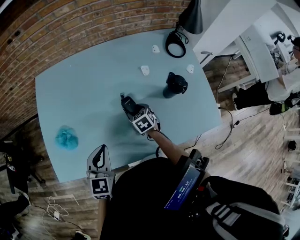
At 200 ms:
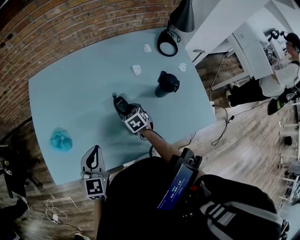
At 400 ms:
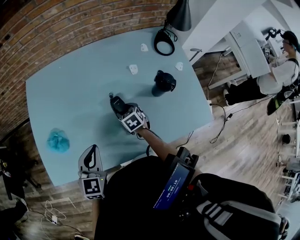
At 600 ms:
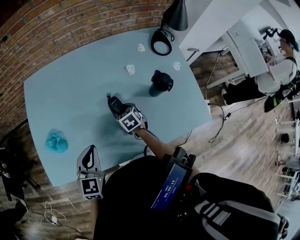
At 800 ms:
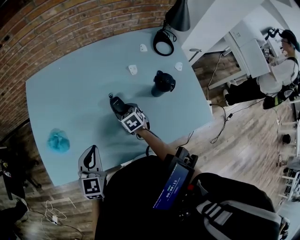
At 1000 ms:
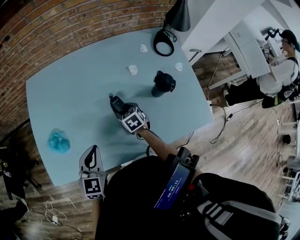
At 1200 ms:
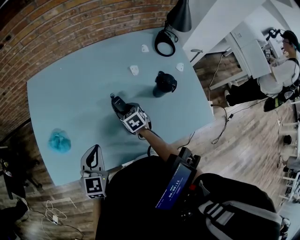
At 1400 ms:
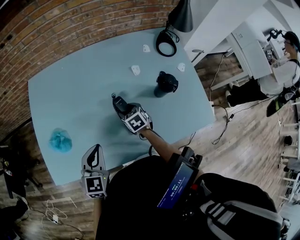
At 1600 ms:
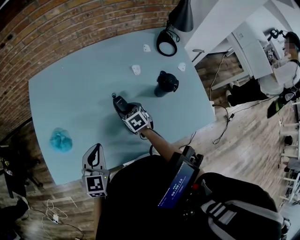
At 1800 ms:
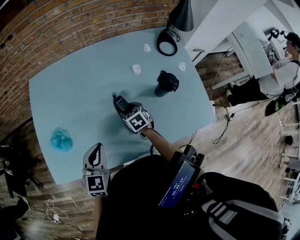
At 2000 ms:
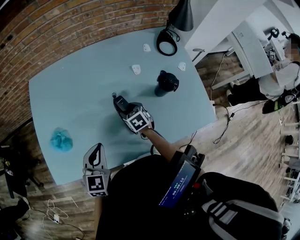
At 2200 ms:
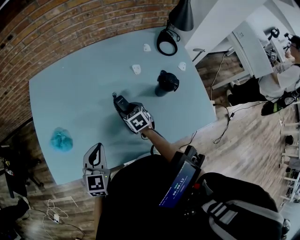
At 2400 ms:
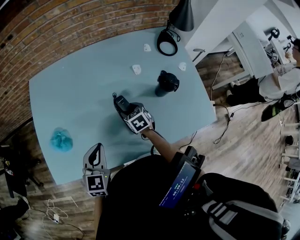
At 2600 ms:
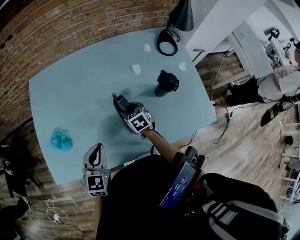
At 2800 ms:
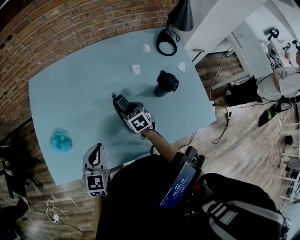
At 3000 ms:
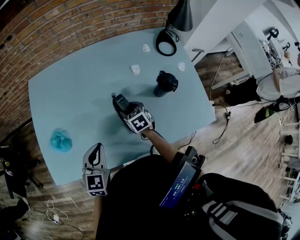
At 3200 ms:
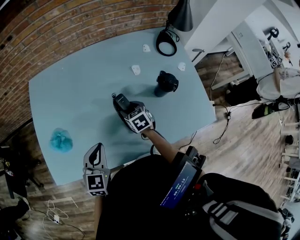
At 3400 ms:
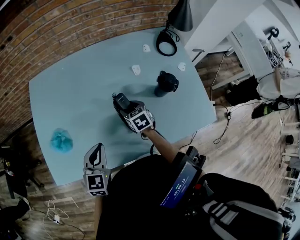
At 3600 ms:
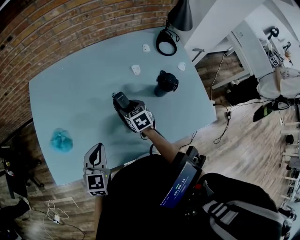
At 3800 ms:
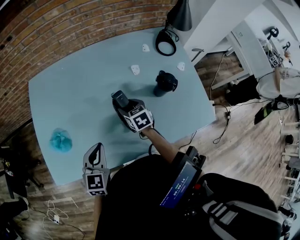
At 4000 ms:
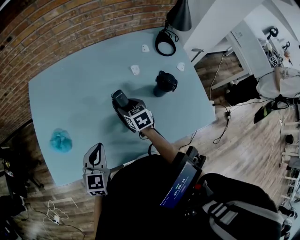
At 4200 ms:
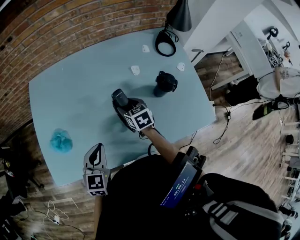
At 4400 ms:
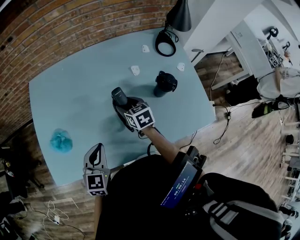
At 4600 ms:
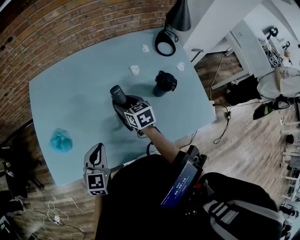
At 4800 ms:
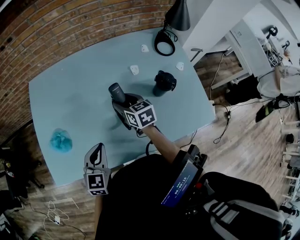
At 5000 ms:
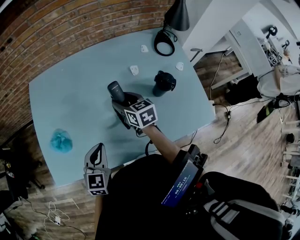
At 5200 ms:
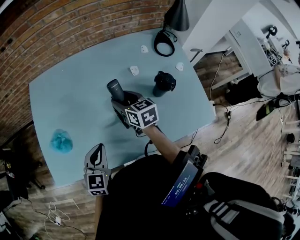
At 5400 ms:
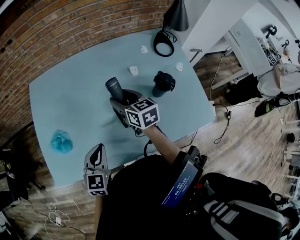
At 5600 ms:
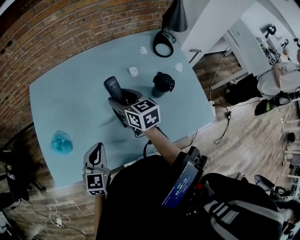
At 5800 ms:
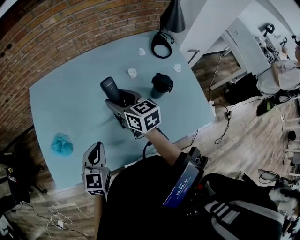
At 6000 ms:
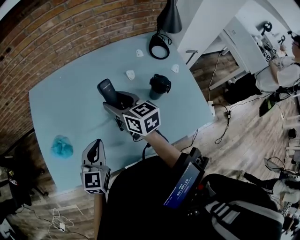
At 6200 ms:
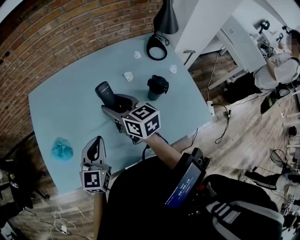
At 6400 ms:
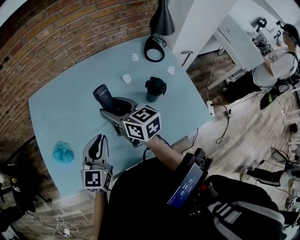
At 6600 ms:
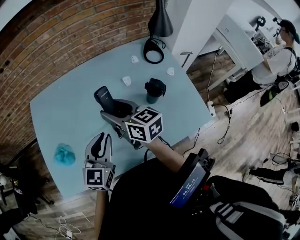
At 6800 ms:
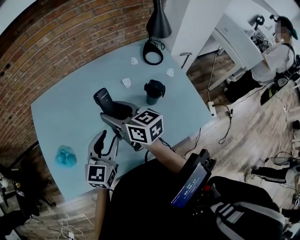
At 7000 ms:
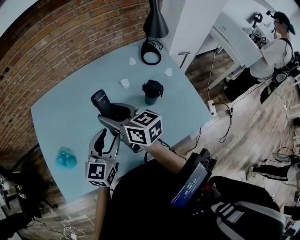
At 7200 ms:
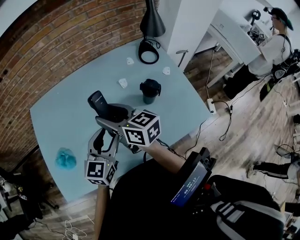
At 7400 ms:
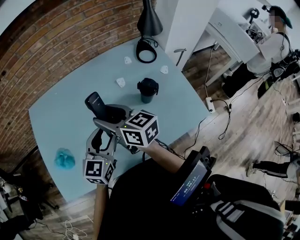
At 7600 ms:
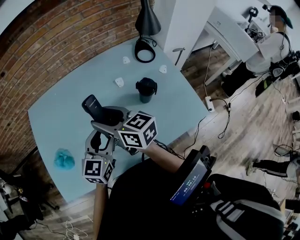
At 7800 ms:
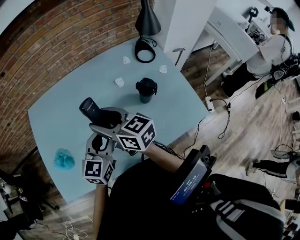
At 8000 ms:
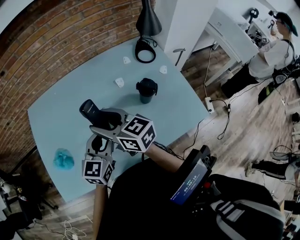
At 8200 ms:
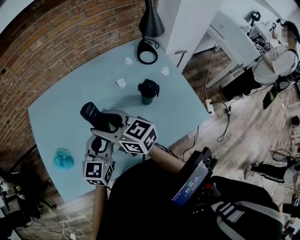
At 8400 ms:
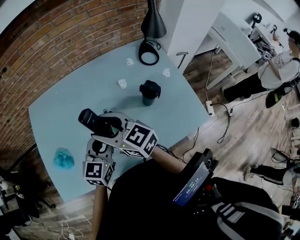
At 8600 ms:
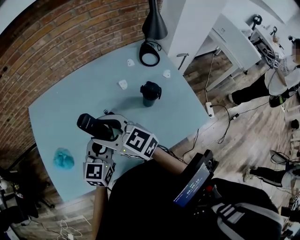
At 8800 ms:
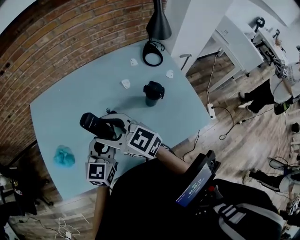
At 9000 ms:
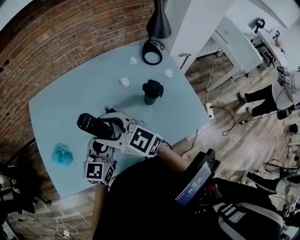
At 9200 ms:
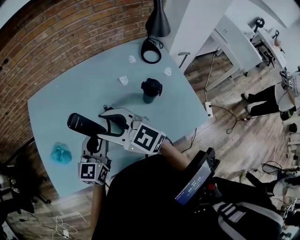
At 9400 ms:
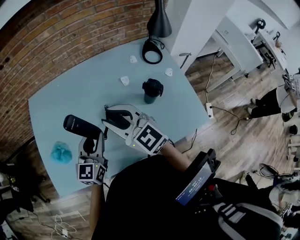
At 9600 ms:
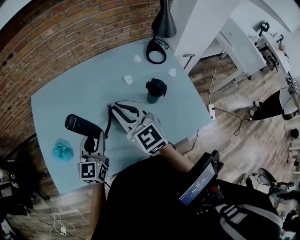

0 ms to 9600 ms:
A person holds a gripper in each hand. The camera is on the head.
0 ms to 3200 ms: The grippers stay close to where they were, moving slightly.
3200 ms to 4800 ms: The right gripper moves upward, some 10 cm.
4800 ms to 6400 ms: The left gripper is displaced upward and to the right by about 10 cm. Meanwhile the right gripper heads upward, covering roughly 15 cm, and turns by about 20 degrees.
6400 ms to 8000 ms: The right gripper changes place by roughly 5 cm. Meanwhile the left gripper moves to the right, some 5 cm, and opens up.
8000 ms to 9600 ms: The right gripper turns by some 40 degrees, and closes up. The left gripper goes approximately 10 cm to the left.

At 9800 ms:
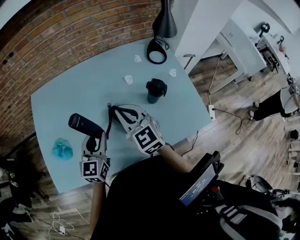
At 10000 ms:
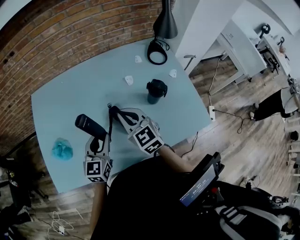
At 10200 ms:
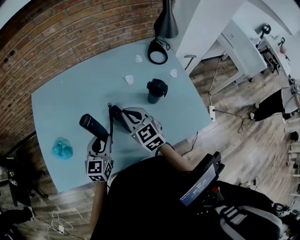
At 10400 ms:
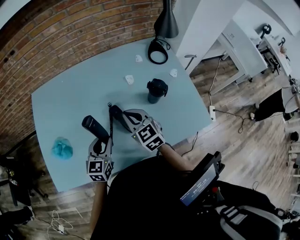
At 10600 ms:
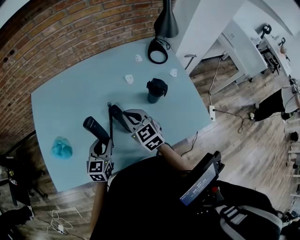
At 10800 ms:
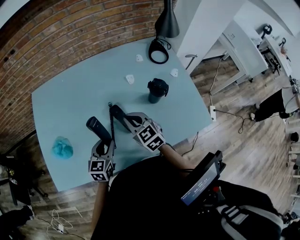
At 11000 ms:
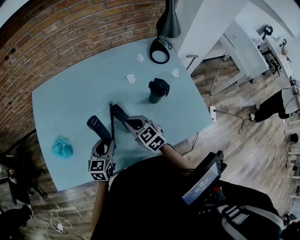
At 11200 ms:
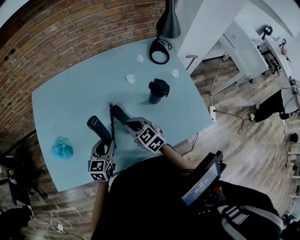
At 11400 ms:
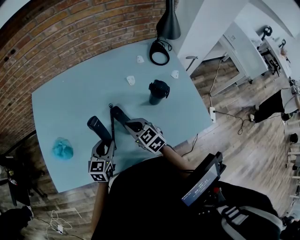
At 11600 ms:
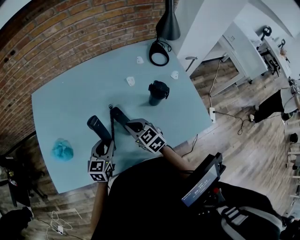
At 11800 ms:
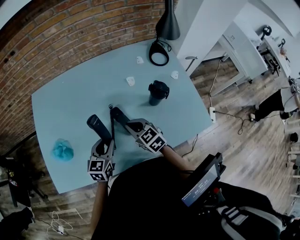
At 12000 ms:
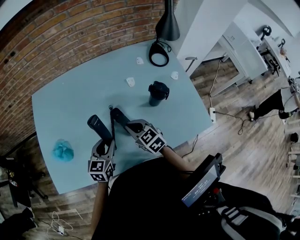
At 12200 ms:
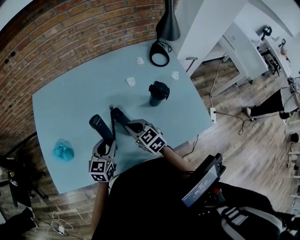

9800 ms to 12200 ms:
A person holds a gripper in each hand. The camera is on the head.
9800 ms to 11000 ms: Both grippers travel together downward, about 10 cm. The right gripper changes its angle by some 20 degrees.
11000 ms to 12200 ms: The grippers make only small movements.

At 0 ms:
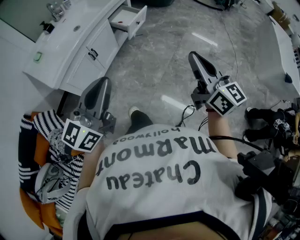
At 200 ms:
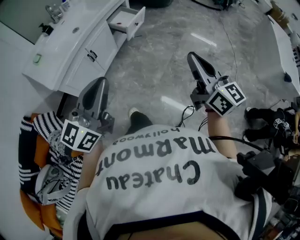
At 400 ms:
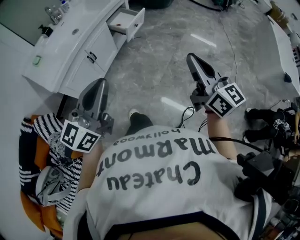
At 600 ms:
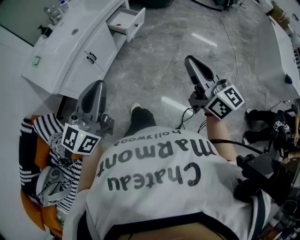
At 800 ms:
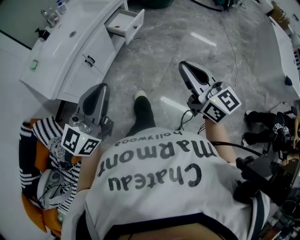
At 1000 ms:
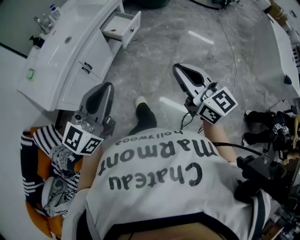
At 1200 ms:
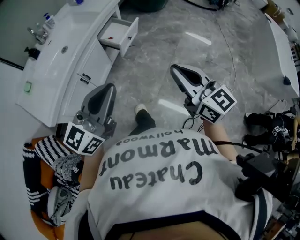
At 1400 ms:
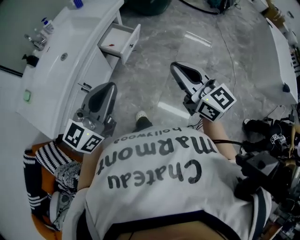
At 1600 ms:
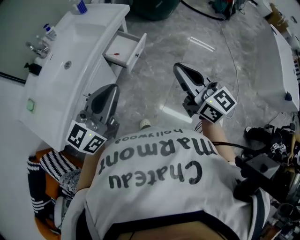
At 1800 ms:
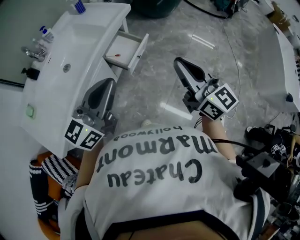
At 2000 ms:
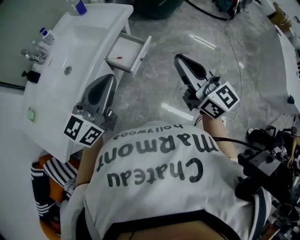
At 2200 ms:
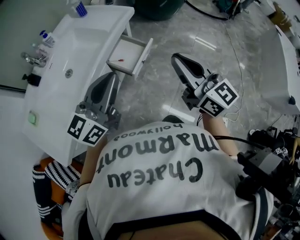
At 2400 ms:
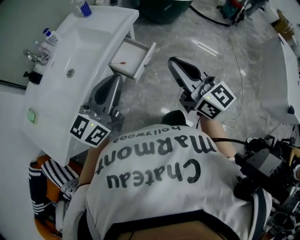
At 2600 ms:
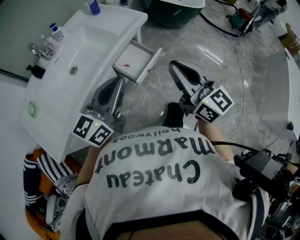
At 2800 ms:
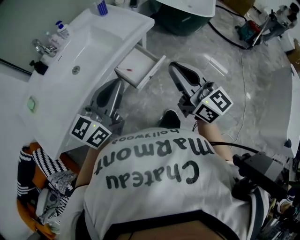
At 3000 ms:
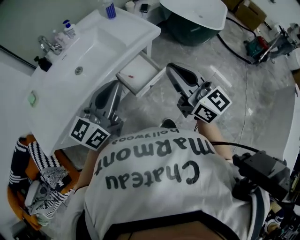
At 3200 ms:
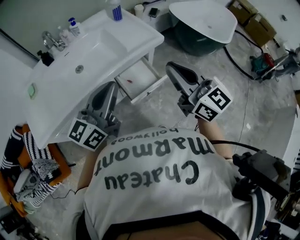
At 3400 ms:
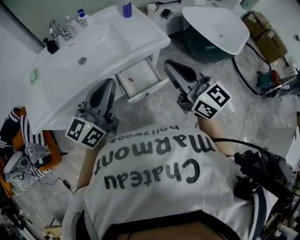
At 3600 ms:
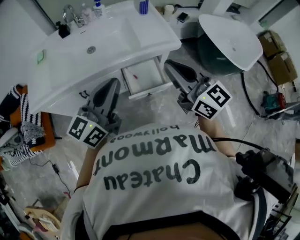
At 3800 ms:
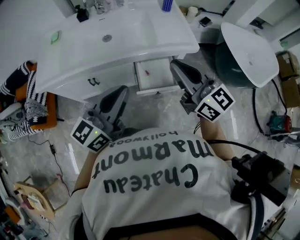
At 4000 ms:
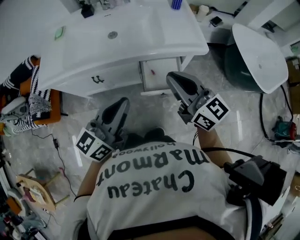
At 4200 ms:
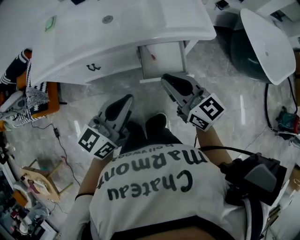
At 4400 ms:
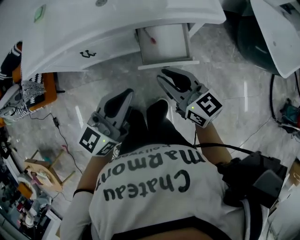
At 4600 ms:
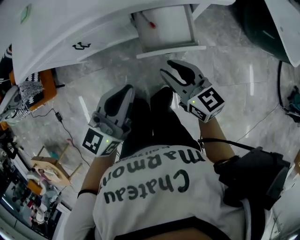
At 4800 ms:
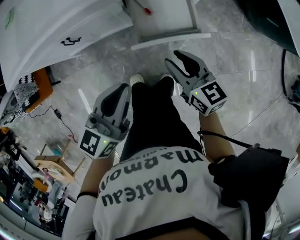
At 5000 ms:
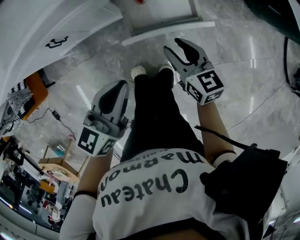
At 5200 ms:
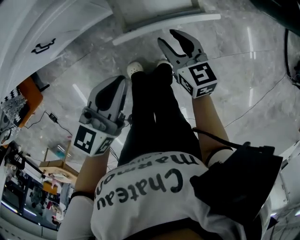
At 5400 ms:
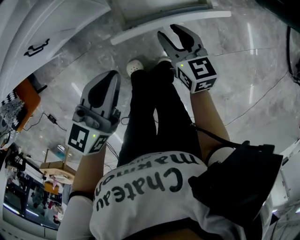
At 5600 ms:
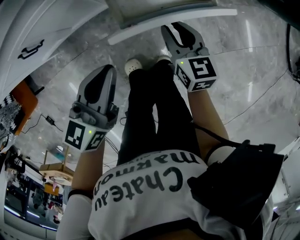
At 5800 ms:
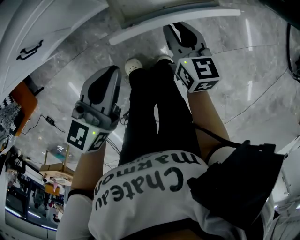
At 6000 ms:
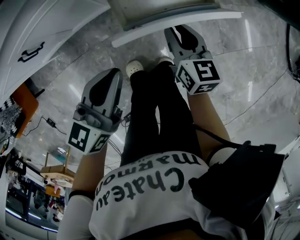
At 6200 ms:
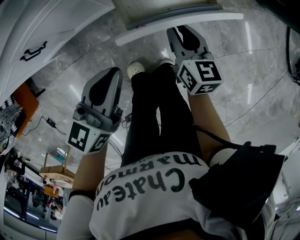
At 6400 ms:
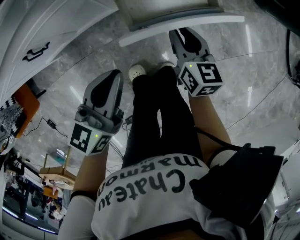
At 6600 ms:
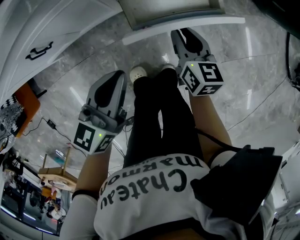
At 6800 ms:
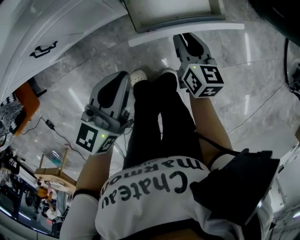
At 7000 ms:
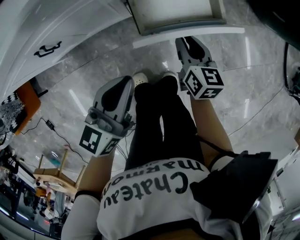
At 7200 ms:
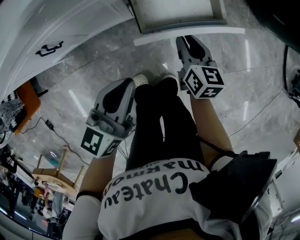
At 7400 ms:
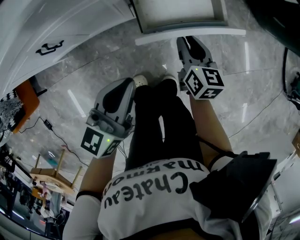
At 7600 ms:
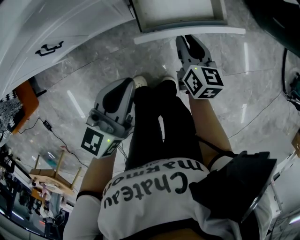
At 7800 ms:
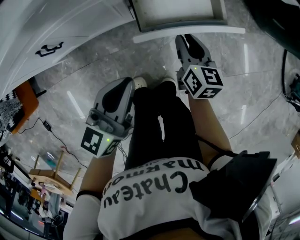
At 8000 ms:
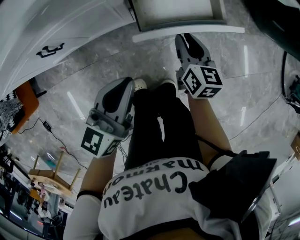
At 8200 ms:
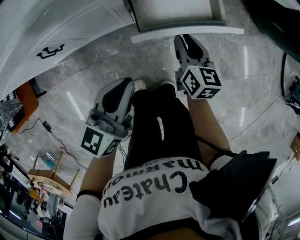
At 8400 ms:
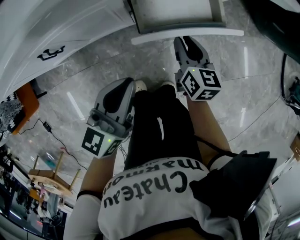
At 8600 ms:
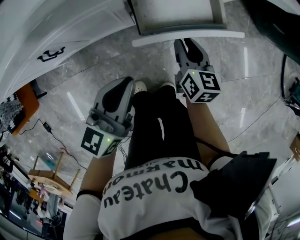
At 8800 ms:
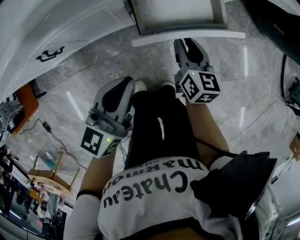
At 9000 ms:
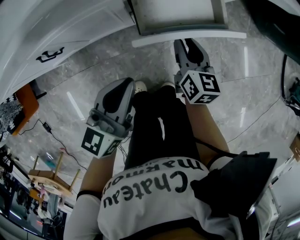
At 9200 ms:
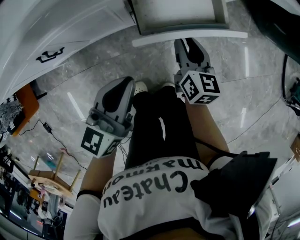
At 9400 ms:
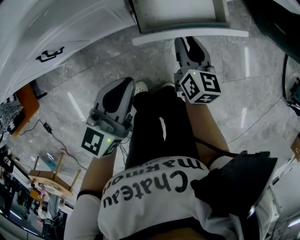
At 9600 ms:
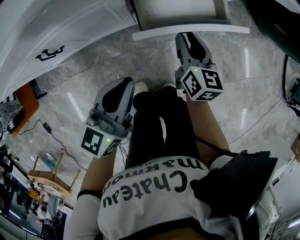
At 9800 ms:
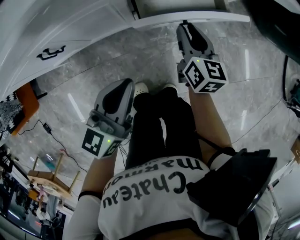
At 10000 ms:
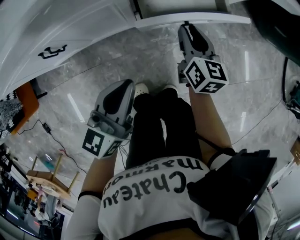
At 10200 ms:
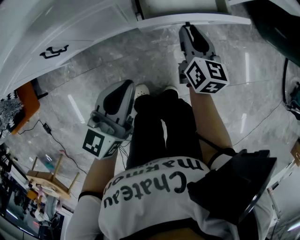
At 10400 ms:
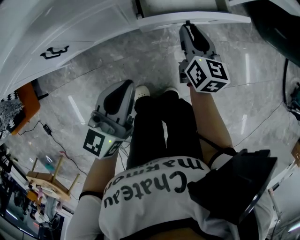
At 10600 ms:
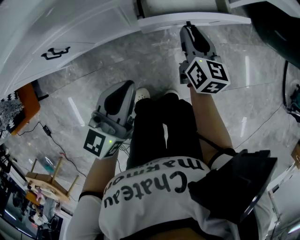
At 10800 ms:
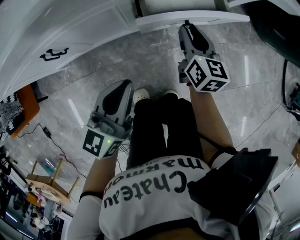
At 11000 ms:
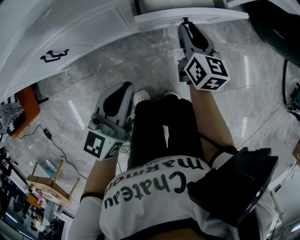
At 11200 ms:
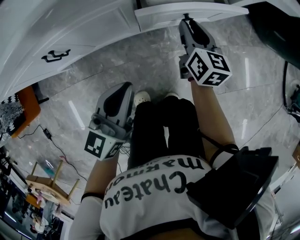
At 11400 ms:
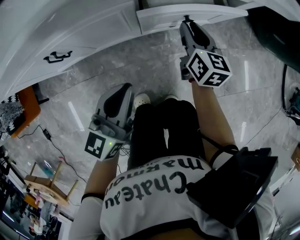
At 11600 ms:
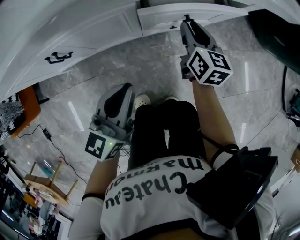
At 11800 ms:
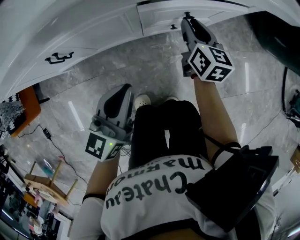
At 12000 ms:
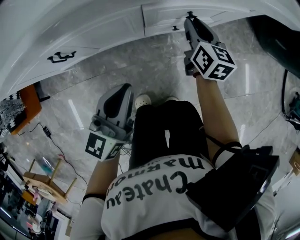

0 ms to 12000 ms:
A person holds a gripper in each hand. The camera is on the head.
0 ms to 1600 ms: The two grippers go approximately 30 cm forward.
1600 ms to 3000 ms: Both grippers travel together forward, some 25 cm. The right gripper turns by about 20 degrees. The left gripper turns by about 20 degrees.
3000 ms to 4400 ms: The left gripper goes about 15 cm downward, and turns by about 30 degrees. Meanwhile the right gripper shifts some 20 cm downward, and swivels some 50 degrees.
4400 ms to 6000 ms: Both grippers move downward, some 30 cm. The right gripper swivels about 40 degrees.
6000 ms to 7600 ms: The grippers make only small movements.
7600 ms to 9000 ms: The grippers stay close to where they were, moving slightly.
9000 ms to 10400 ms: There are only small adjustments of the grippers.
10400 ms to 12000 ms: The right gripper is displaced forward by some 5 cm.
